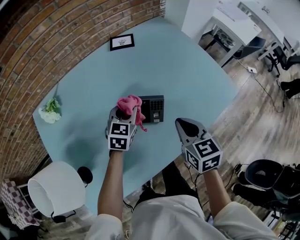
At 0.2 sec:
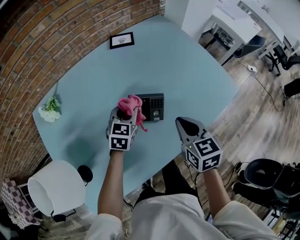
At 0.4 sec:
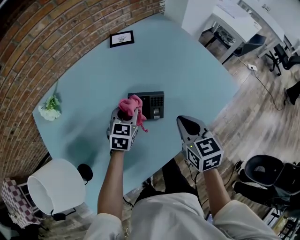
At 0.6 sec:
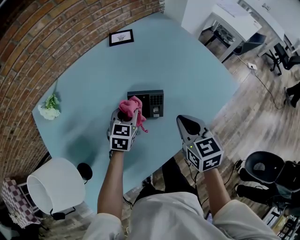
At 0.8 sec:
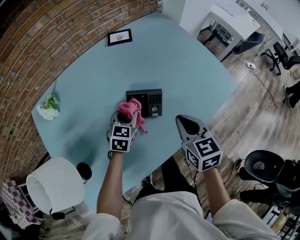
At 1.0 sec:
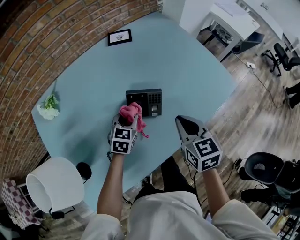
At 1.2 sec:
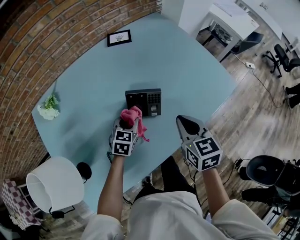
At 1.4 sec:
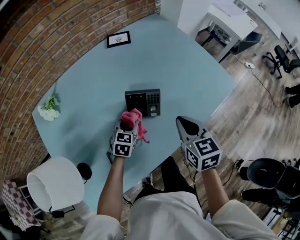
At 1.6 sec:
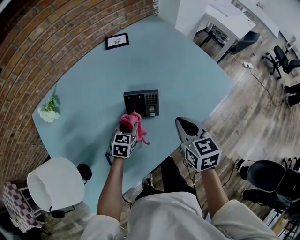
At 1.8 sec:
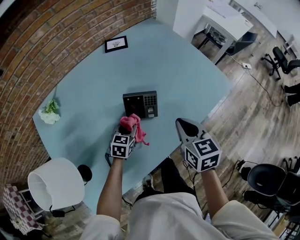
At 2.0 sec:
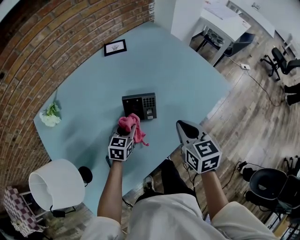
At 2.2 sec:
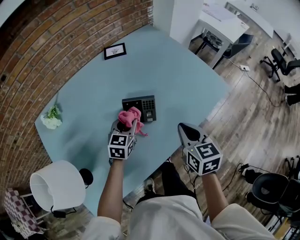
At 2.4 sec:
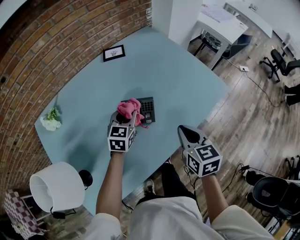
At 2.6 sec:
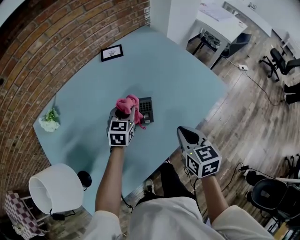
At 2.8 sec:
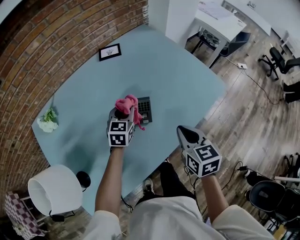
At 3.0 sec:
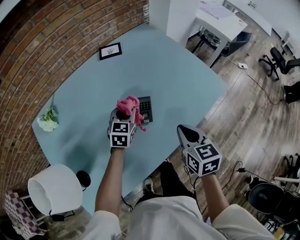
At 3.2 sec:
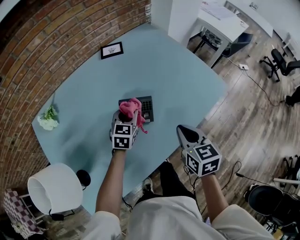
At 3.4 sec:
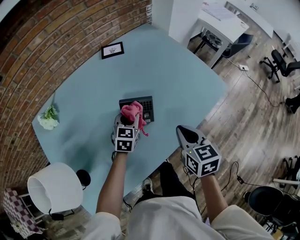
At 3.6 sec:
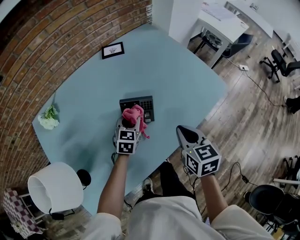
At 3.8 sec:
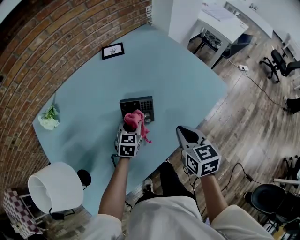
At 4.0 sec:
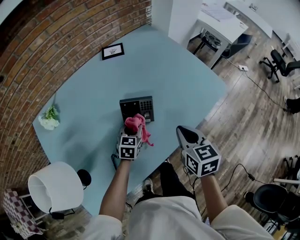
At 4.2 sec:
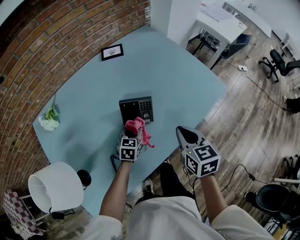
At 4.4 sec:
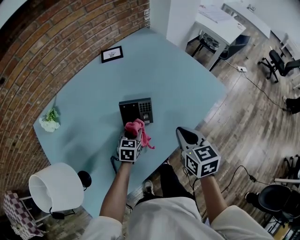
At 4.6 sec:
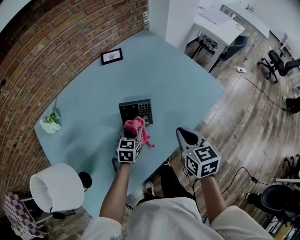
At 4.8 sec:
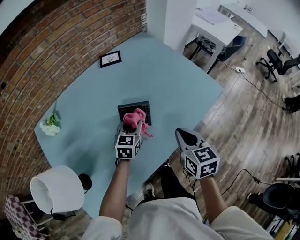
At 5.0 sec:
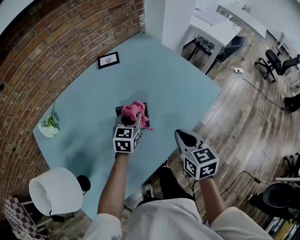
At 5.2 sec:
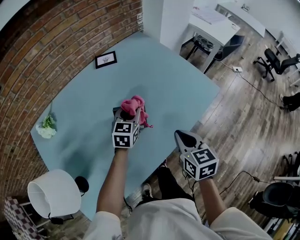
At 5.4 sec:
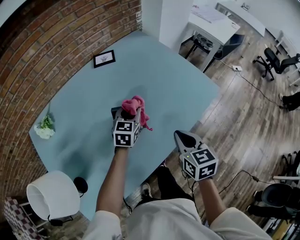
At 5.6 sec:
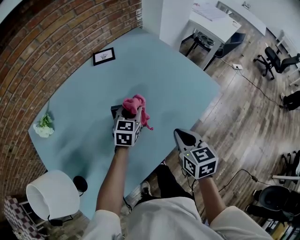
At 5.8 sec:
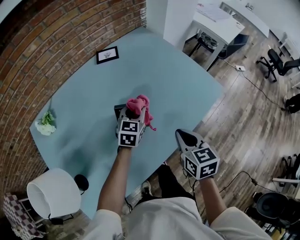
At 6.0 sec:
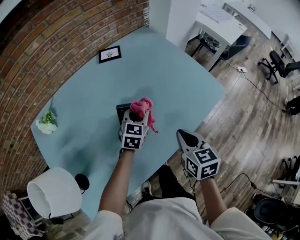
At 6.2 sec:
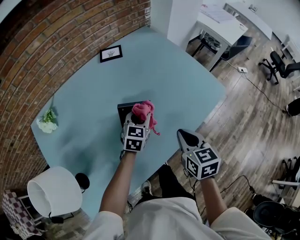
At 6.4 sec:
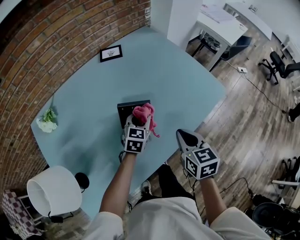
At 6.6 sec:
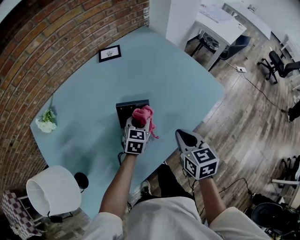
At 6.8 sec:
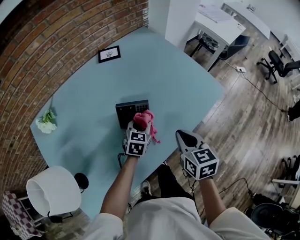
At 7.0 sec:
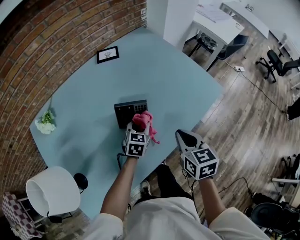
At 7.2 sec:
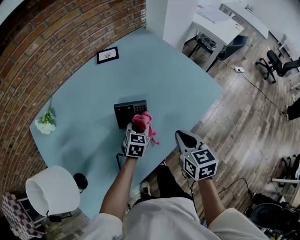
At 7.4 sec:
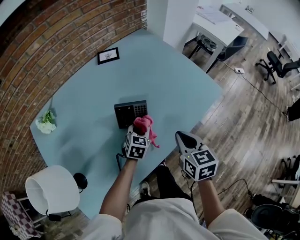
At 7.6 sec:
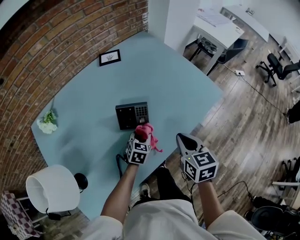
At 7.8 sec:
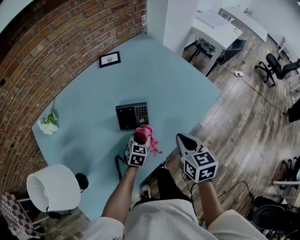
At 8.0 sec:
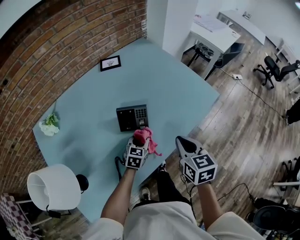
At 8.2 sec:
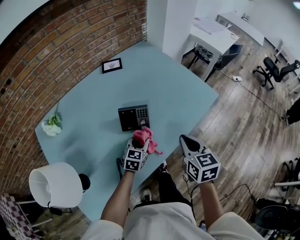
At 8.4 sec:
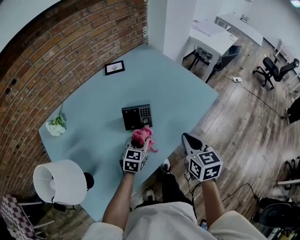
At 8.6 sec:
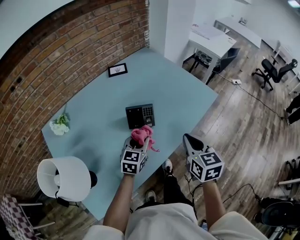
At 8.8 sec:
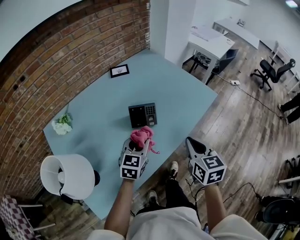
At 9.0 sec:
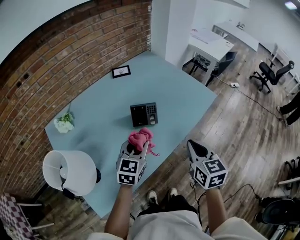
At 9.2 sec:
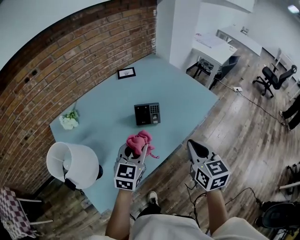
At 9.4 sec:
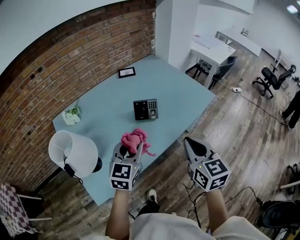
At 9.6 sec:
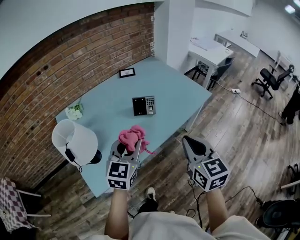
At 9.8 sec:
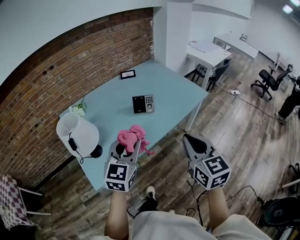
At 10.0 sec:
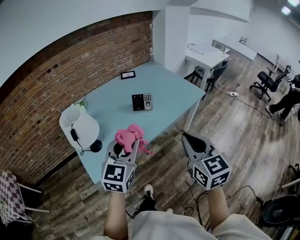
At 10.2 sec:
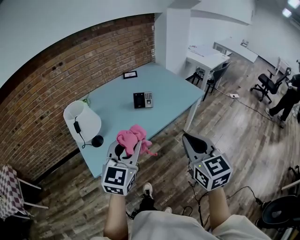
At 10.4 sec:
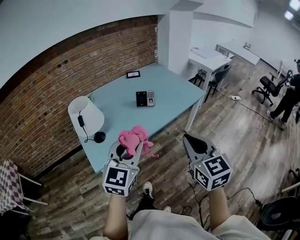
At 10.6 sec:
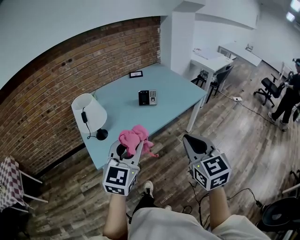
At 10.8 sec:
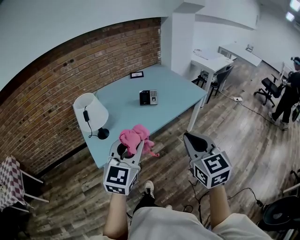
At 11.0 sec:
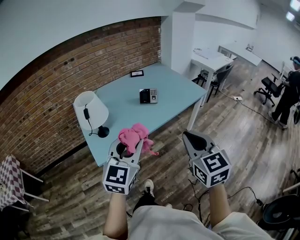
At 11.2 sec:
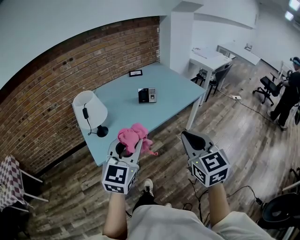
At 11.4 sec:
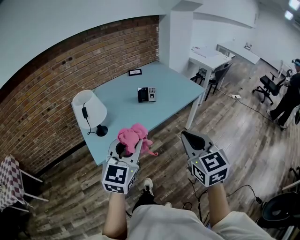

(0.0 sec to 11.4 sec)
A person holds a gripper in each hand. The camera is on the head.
0.0 sec - 1.4 sec: The left gripper shifts some 10 cm downward and backward.
1.4 sec - 2.8 sec: The left gripper heads upward and forward, covering about 10 cm.
2.8 sec - 4.2 sec: The left gripper is displaced downward and backward by about 15 cm.
4.2 sec - 5.6 sec: The left gripper heads upward and forward, covering roughly 15 cm.
5.6 sec - 7.2 sec: The left gripper shifts about 10 cm downward and backward.
7.2 sec - 8.6 sec: The grippers both shift backward and upward by roughly 10 cm.
8.6 sec - 10.0 sec: The grippers both shift backward and upward by about 35 cm. The left gripper turns by approximately 20 degrees. Meanwhile the right gripper changes its angle by roughly 20 degrees.
10.0 sec - 11.4 sec: The grippers both shift backward by approximately 10 cm.

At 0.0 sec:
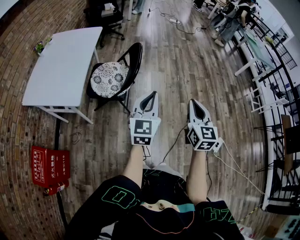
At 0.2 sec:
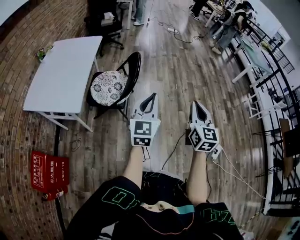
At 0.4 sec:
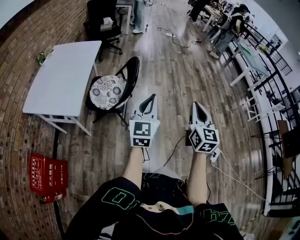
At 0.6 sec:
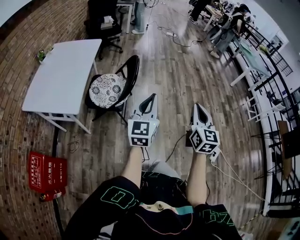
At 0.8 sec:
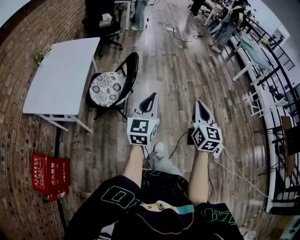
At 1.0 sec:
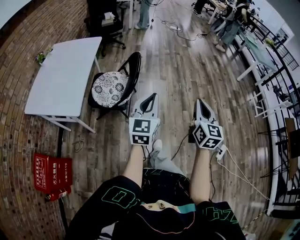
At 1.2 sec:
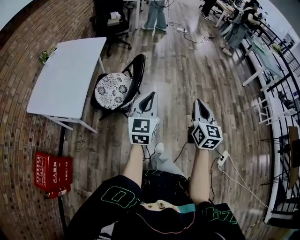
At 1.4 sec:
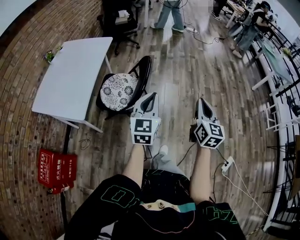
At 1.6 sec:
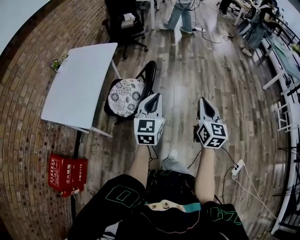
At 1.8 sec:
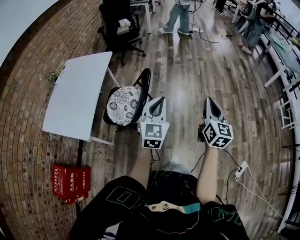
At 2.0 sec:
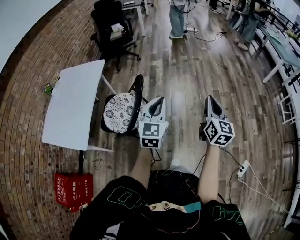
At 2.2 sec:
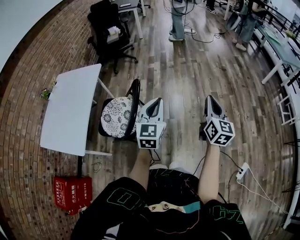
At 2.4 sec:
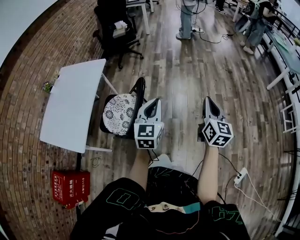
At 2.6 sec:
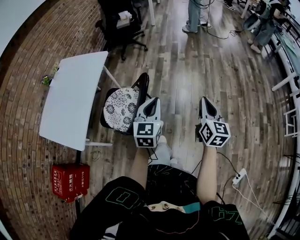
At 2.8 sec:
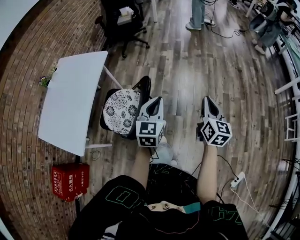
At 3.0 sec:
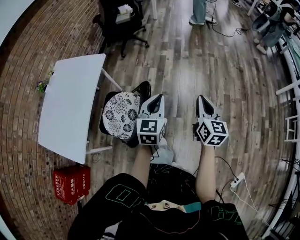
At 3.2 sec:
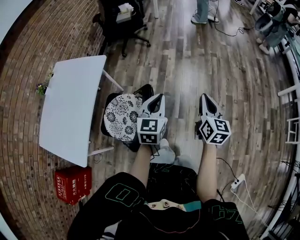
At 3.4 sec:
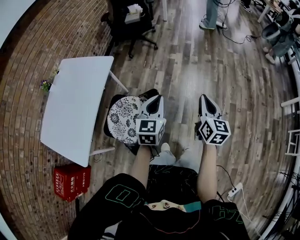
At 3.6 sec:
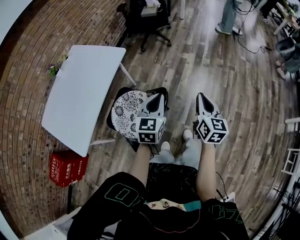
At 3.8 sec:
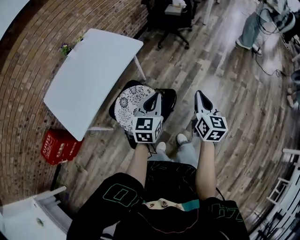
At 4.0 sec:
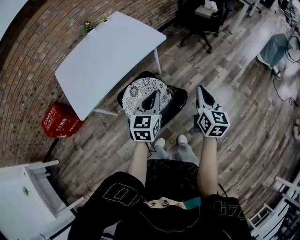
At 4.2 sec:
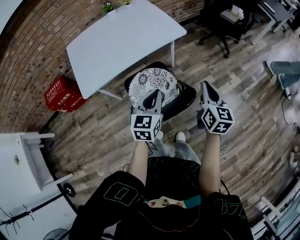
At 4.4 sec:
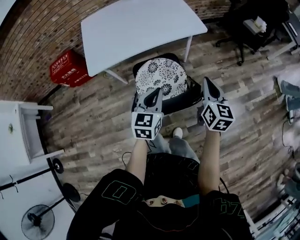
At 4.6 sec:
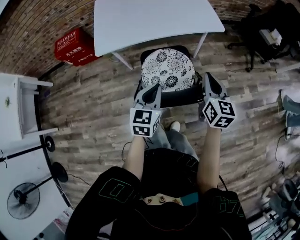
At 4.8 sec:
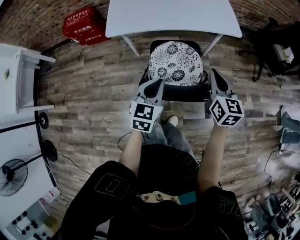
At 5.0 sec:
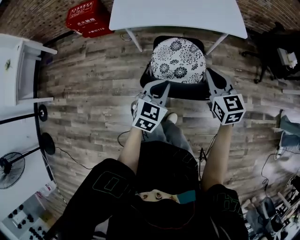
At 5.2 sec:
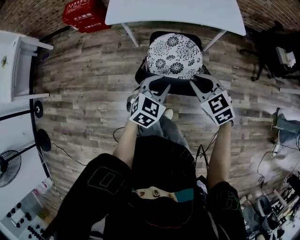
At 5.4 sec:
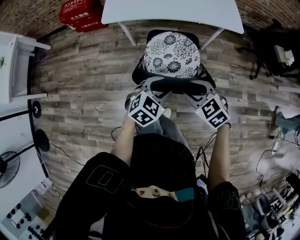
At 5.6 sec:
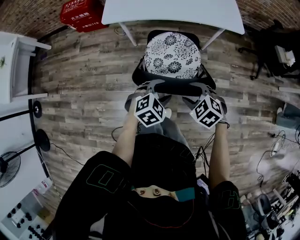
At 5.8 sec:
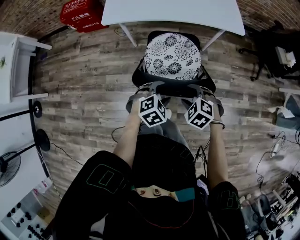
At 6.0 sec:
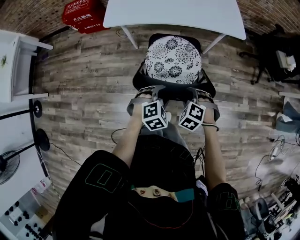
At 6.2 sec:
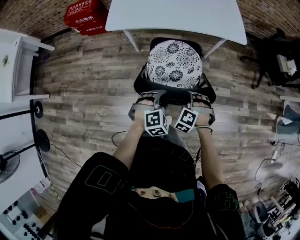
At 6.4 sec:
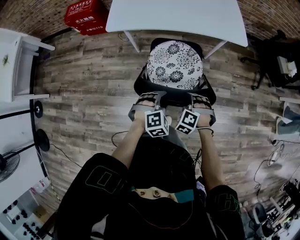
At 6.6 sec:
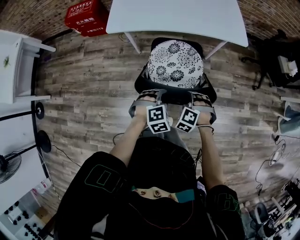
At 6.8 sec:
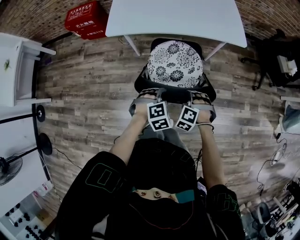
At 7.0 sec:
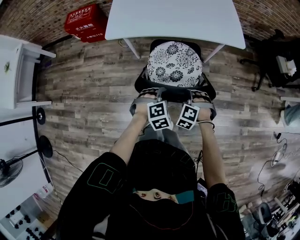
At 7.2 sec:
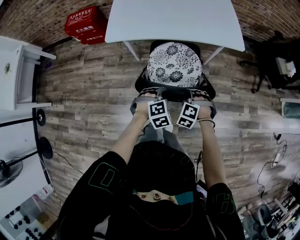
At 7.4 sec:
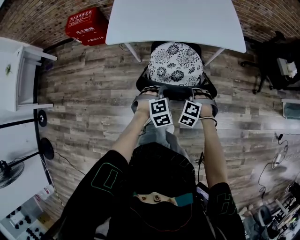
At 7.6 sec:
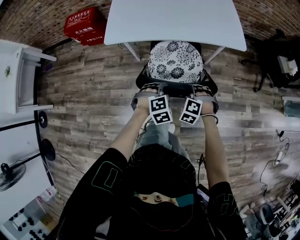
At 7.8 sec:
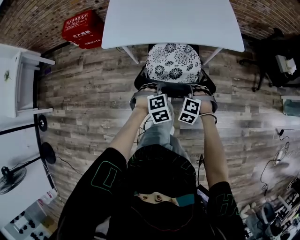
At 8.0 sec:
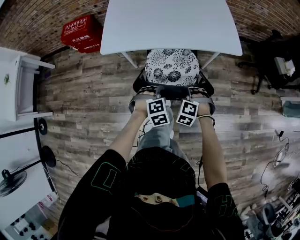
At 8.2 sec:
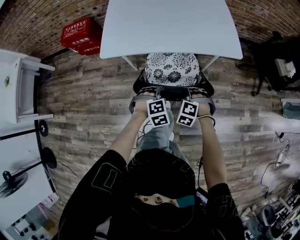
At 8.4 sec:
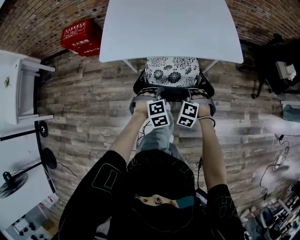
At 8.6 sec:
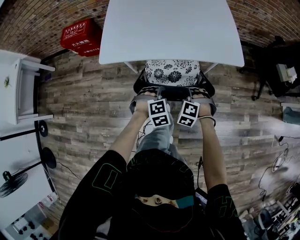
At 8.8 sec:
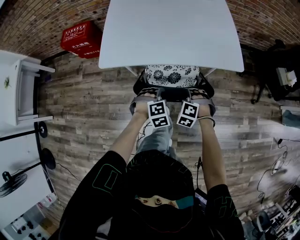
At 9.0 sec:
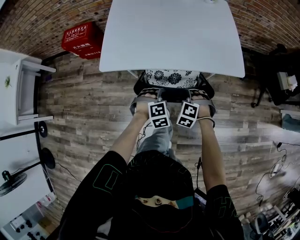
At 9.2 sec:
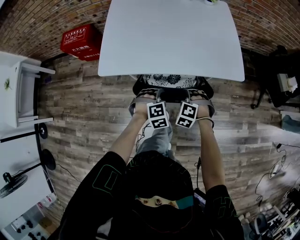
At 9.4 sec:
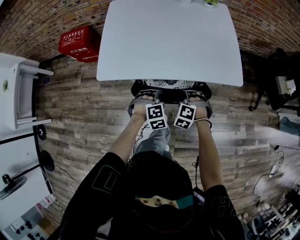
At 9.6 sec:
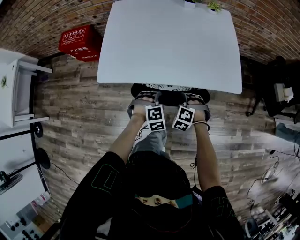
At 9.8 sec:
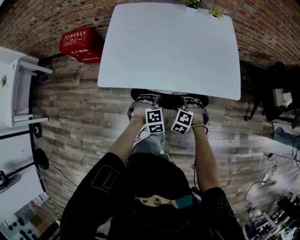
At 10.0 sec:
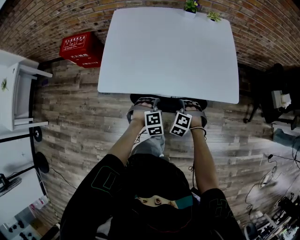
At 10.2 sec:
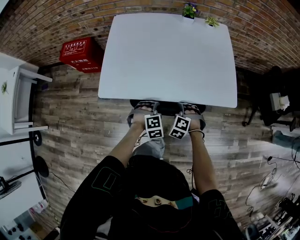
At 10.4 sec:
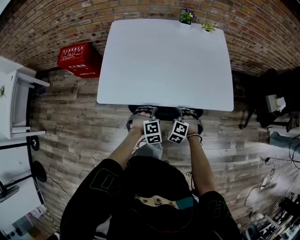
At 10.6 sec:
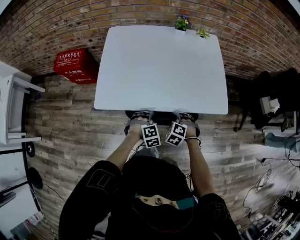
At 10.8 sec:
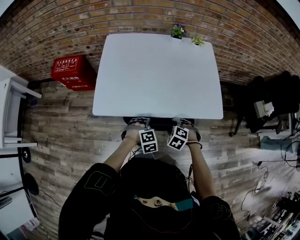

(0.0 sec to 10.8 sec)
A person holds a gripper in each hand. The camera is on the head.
0.0 sec - 1.6 sec: Both grippers travel together forward, some 20 cm.
1.6 sec - 3.0 sec: The grippers both shift forward by roughly 30 cm.
3.0 sec - 4.6 sec: The right gripper ends up approximately 35 cm from where it was, and turns by roughly 70 degrees; the left gripper moves some 25 cm, and turns by some 70 degrees.
4.6 sec - 6.2 sec: The two grippers go roughly 20 cm downward. The left gripper rolls clockwise, seen from behind, by approximately 40 degrees, and opens up, while the right gripper twists roughly 90 degrees counterclockwise, seen from behind, and opens, then closes once more.
6.2 sec - 7.8 sec: Both grippers move forward, roughly 10 cm.
7.8 sec - 9.2 sec: The grippers both shift forward by some 15 cm.
9.2 sec - 10.8 sec: The right gripper moves approximately 5 cm, and opens its fingers, while the left gripper is displaced forward by approximately 5 cm.

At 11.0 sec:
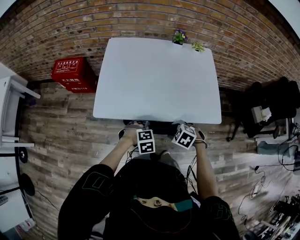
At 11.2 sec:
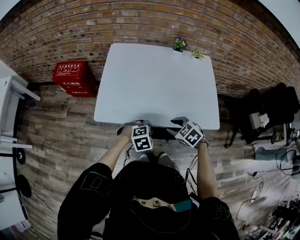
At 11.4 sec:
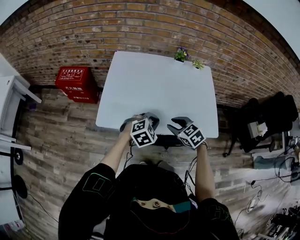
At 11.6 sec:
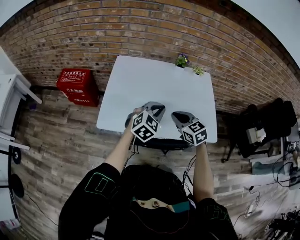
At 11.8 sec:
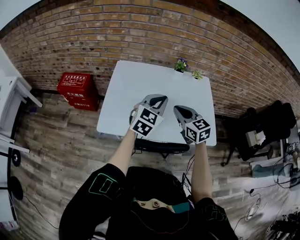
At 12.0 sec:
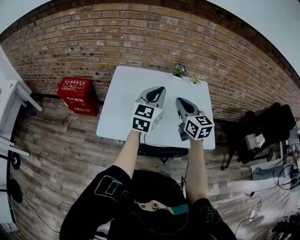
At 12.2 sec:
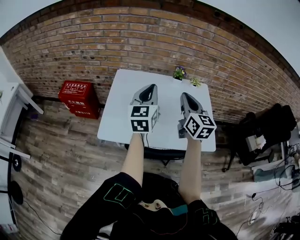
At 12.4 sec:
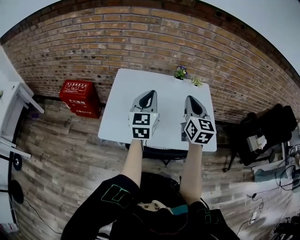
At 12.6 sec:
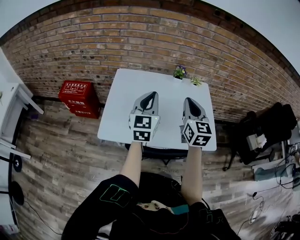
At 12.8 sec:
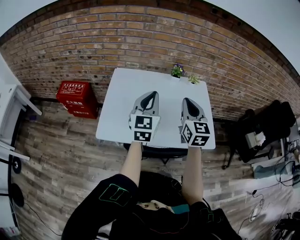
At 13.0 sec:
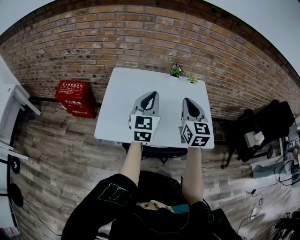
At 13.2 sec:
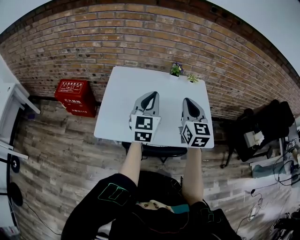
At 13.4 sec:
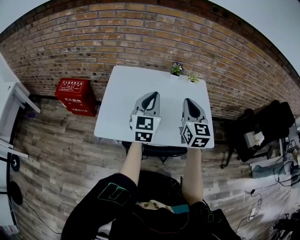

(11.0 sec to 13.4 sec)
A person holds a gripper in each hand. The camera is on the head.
11.0 sec - 12.2 sec: Both grippers move upward and forward, roughly 40 cm. The left gripper tips its fingers upward by roughly 70 degrees, and closes its fingers. The right gripper angles its fingers upward, by some 70 degrees, and closes up.
12.2 sec - 13.4 sec: The left gripper ends up approximately 5 cm from where it was.
